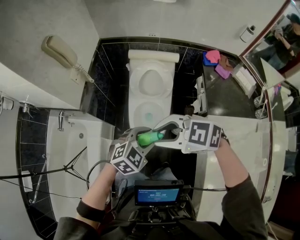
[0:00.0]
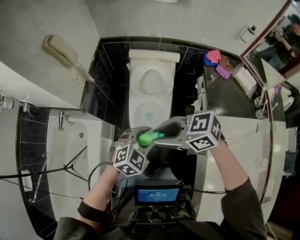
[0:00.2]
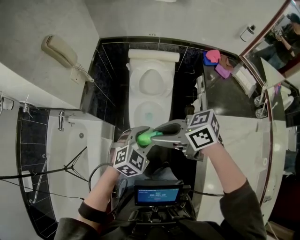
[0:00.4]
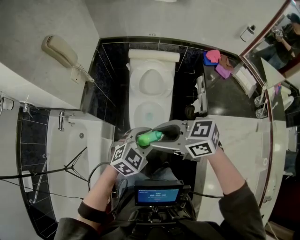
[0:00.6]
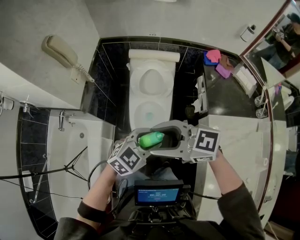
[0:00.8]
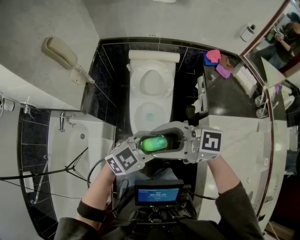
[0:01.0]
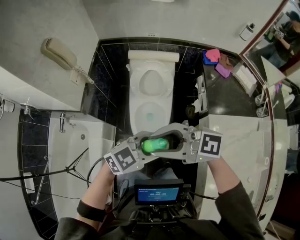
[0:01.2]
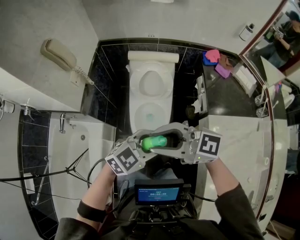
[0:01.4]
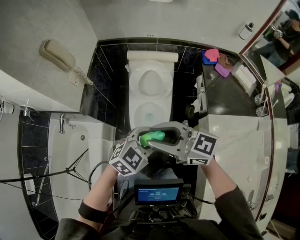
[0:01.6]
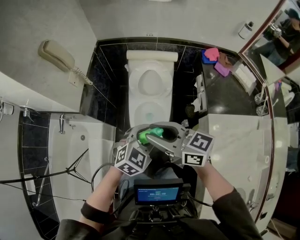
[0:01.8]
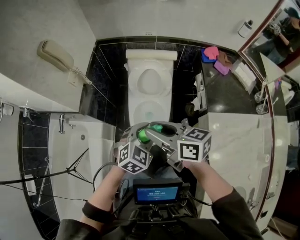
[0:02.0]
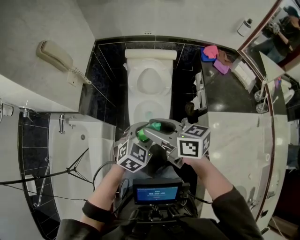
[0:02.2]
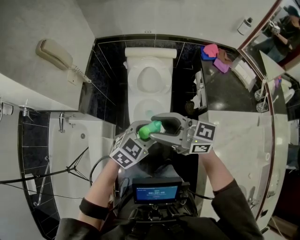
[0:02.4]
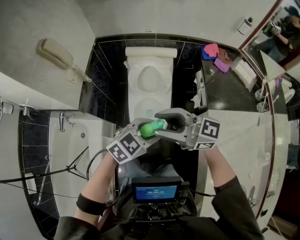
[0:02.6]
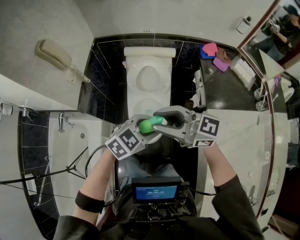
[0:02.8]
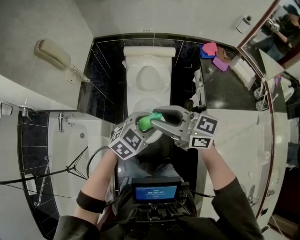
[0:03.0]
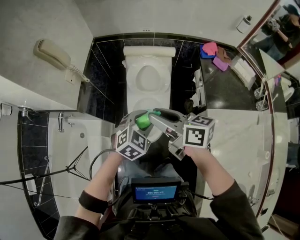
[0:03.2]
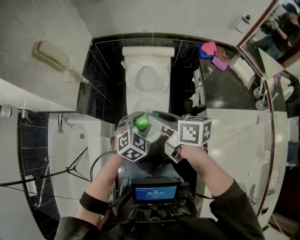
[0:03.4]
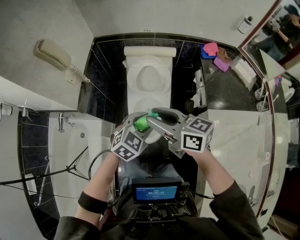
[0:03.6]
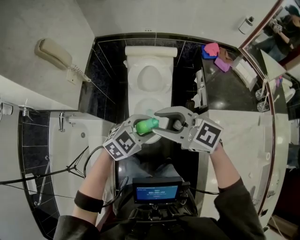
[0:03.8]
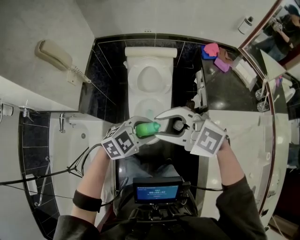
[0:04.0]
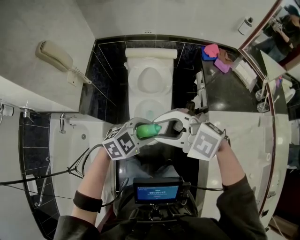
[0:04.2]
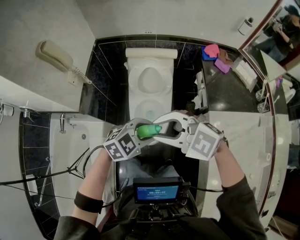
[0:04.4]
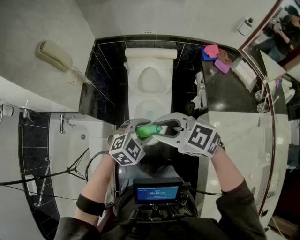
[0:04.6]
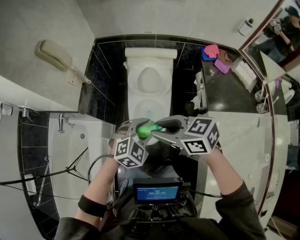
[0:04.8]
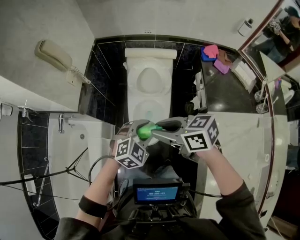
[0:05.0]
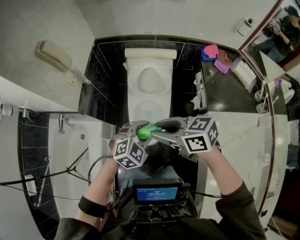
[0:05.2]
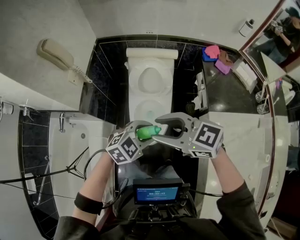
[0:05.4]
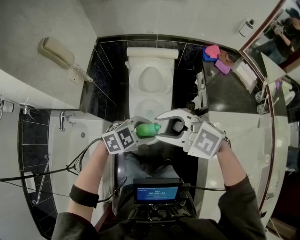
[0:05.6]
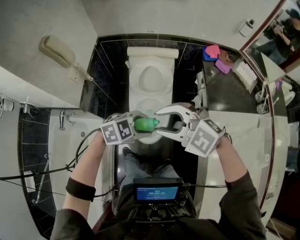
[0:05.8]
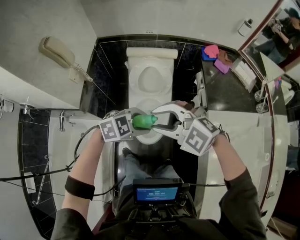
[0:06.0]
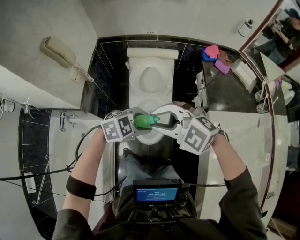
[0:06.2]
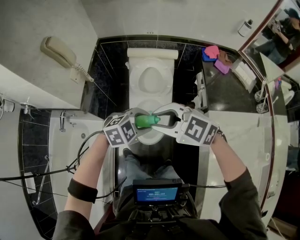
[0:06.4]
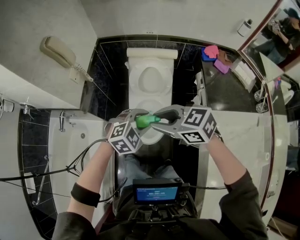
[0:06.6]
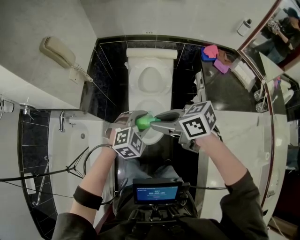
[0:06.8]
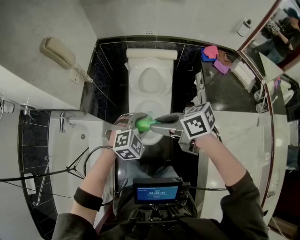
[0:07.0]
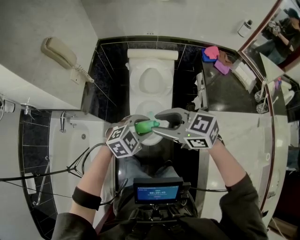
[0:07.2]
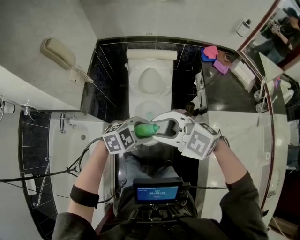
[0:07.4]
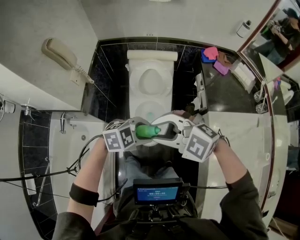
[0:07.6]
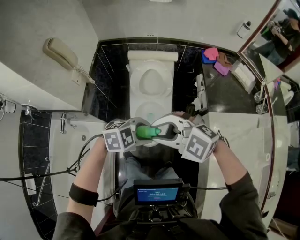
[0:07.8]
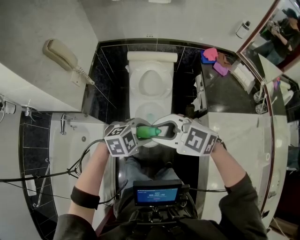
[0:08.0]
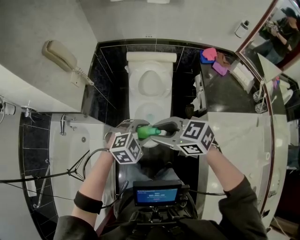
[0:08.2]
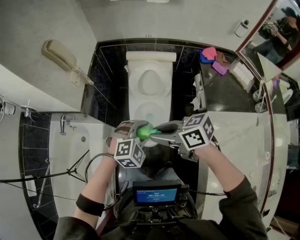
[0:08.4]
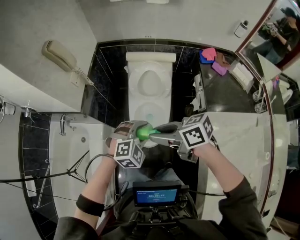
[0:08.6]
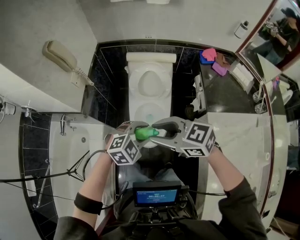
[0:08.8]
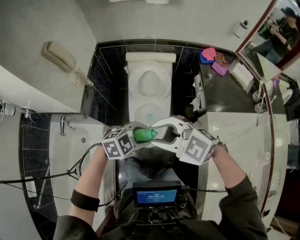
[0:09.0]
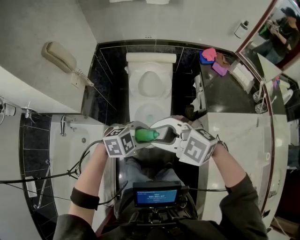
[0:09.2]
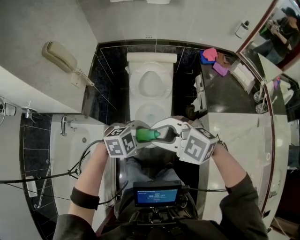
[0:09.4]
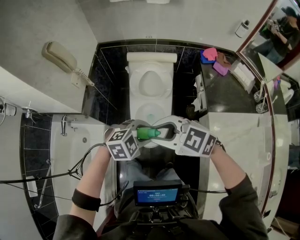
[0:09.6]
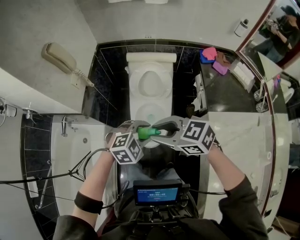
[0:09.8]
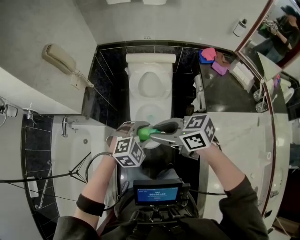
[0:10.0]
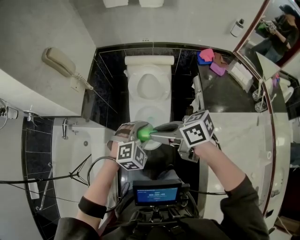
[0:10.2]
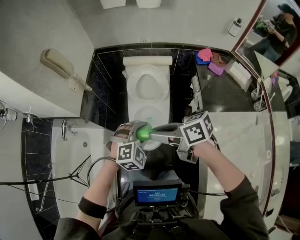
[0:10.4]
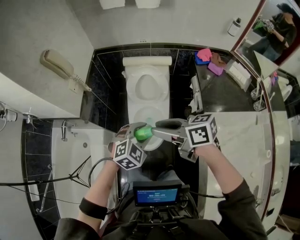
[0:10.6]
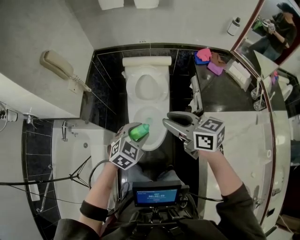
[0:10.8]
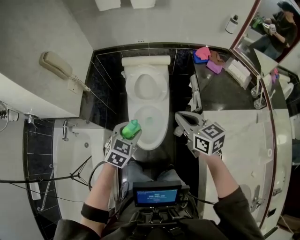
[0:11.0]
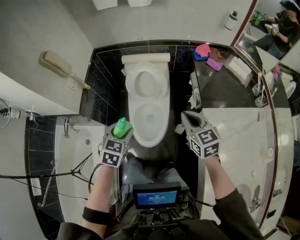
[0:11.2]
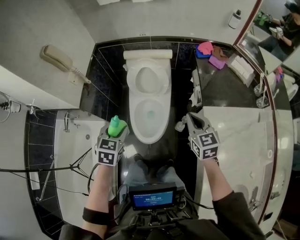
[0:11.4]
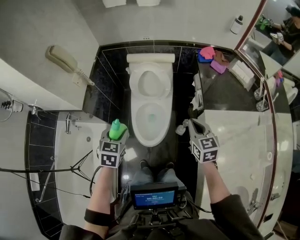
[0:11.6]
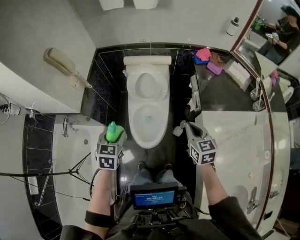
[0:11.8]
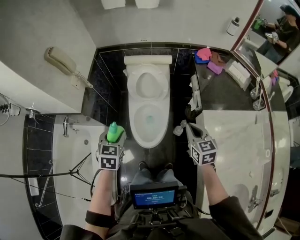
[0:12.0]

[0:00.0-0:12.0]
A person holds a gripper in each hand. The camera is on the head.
0:00.0 to 0:01.6: The right gripper tilts its fingers roughly 30 degrees upward.
0:01.6 to 0:03.0: The right gripper changes place by roughly 5 cm.
0:03.0 to 0:04.4: The right gripper shifts by some 5 cm, and turns by about 50 degrees.
0:09.0 to 0:10.4: The right gripper shifts by about 5 cm, and twists roughly 70 degrees clockwise, seen from behind, while the left gripper rotates approximately 40 degrees.
0:10.4 to 0:12.0: The left gripper shifts roughly 15 cm to the left, and rolls counterclockwise, seen from behind, by roughly 50 degrees. The right gripper heads to the right and downward, covering approximately 20 cm, turns by about 60 degrees, and closes up.

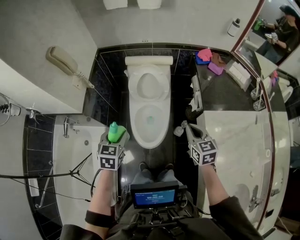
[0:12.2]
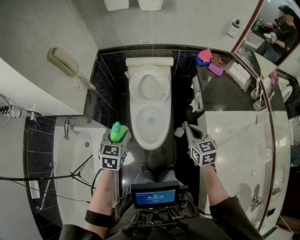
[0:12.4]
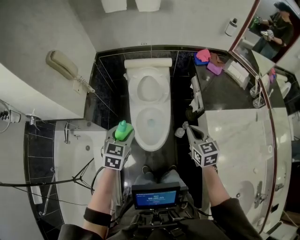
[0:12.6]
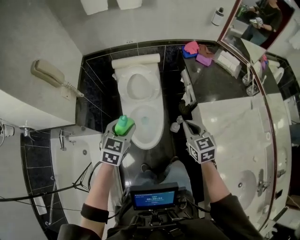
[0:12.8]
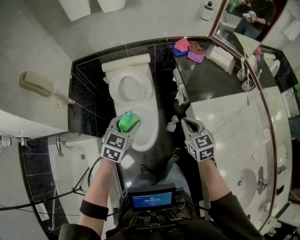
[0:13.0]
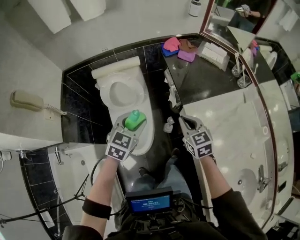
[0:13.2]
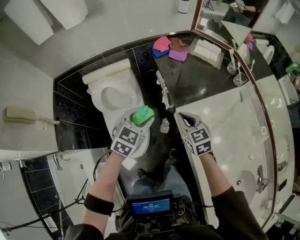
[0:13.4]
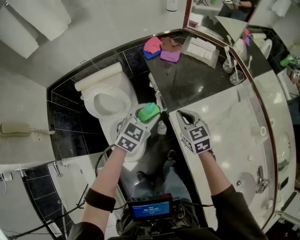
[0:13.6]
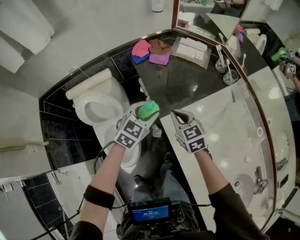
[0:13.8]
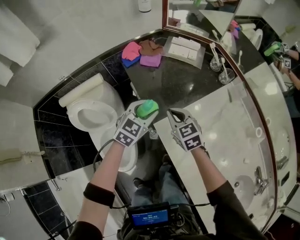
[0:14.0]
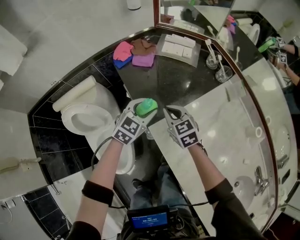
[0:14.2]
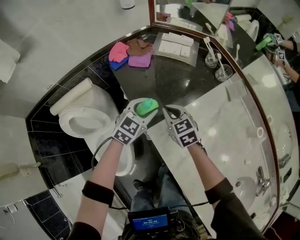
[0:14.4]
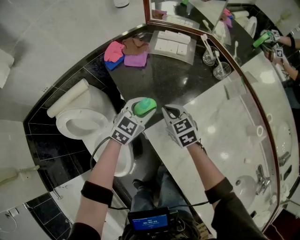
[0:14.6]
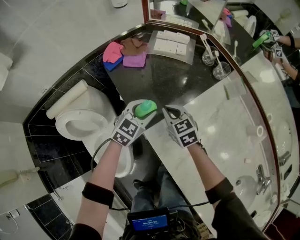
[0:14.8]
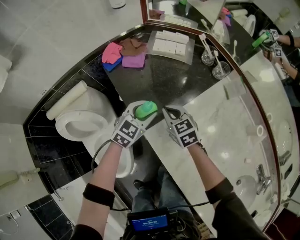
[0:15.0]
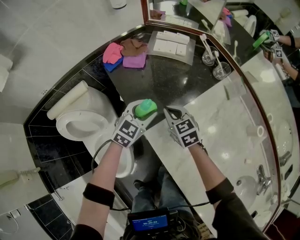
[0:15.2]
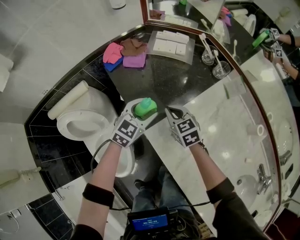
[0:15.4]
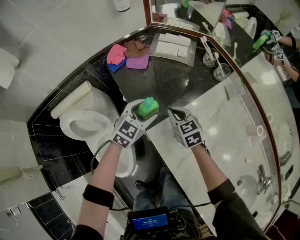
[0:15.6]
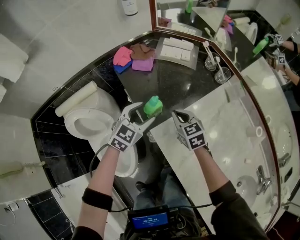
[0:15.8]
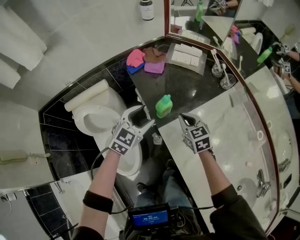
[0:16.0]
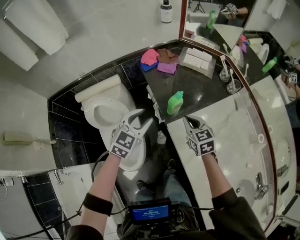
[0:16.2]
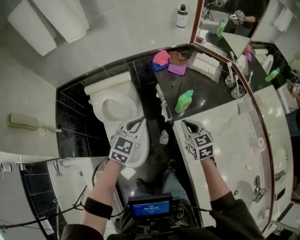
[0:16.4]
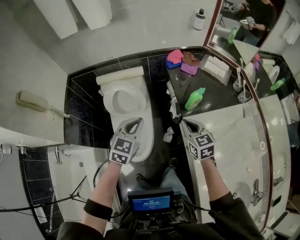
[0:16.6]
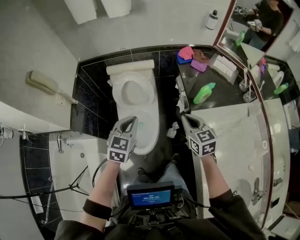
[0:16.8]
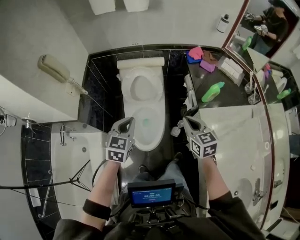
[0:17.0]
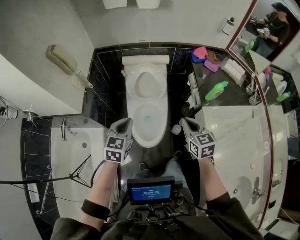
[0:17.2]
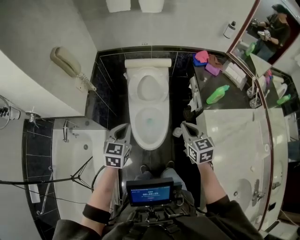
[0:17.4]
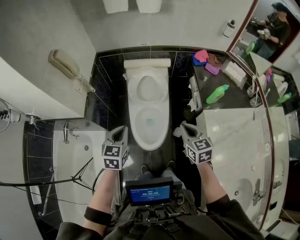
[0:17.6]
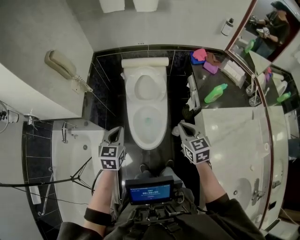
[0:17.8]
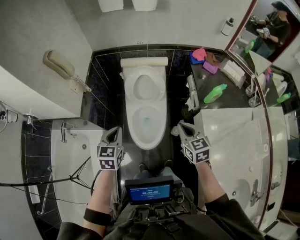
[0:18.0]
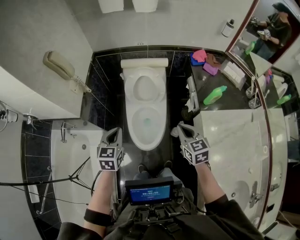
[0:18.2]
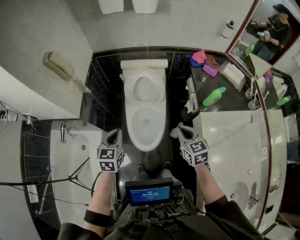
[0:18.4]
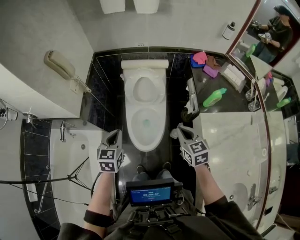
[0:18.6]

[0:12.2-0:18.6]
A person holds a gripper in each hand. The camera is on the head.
0:12.2 to 0:13.8: The left gripper moves some 50 cm, and rotates some 60 degrees, while the right gripper moves about 25 cm.
0:13.8 to 0:15.4: The two grippers go approximately 15 cm forward, downward and to the right.
0:15.4 to 0:17.0: The right gripper shifts by approximately 40 cm. The left gripper ends up approximately 60 cm from where it was, turns by some 50 degrees, and closes up.
0:17.0 to 0:18.6: The left gripper goes roughly 10 cm to the left.

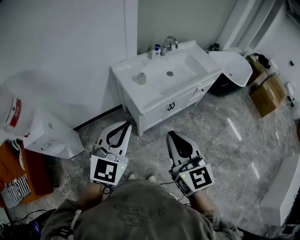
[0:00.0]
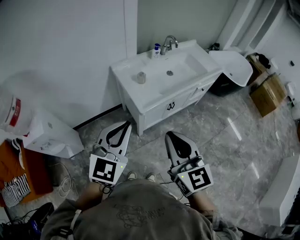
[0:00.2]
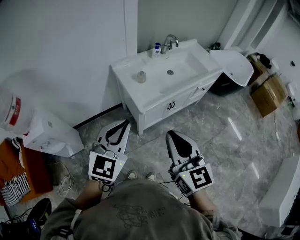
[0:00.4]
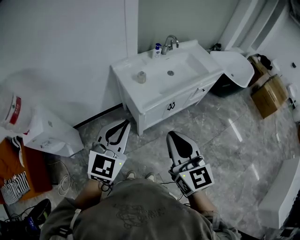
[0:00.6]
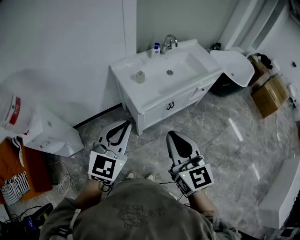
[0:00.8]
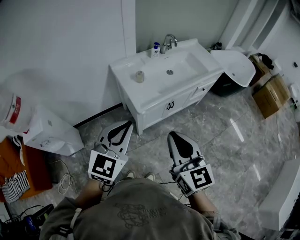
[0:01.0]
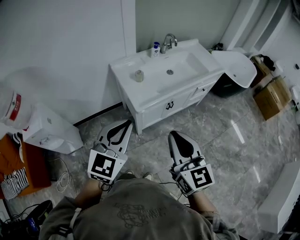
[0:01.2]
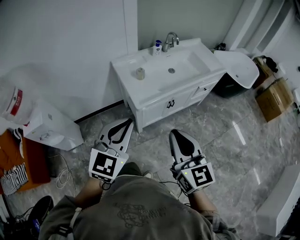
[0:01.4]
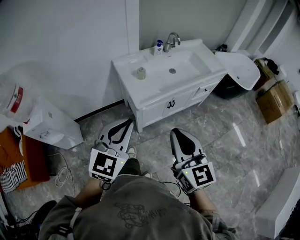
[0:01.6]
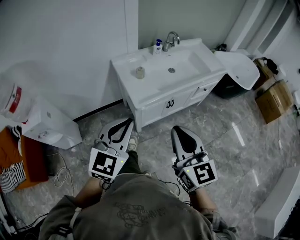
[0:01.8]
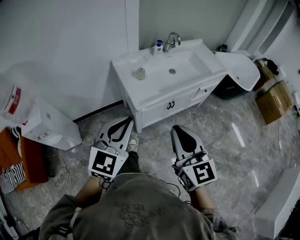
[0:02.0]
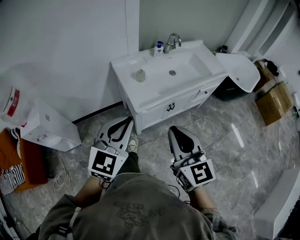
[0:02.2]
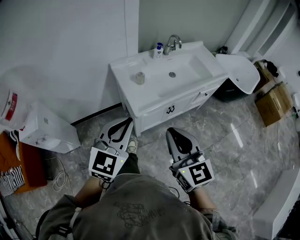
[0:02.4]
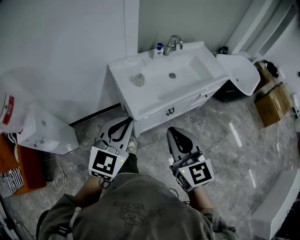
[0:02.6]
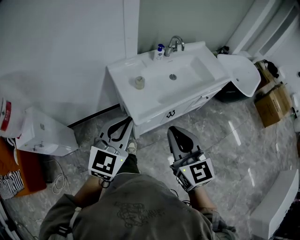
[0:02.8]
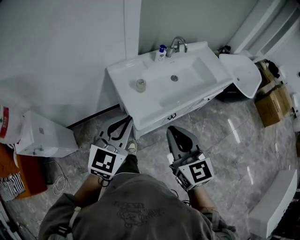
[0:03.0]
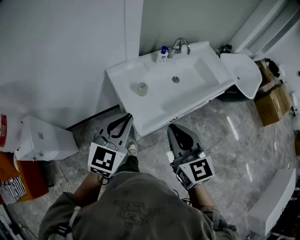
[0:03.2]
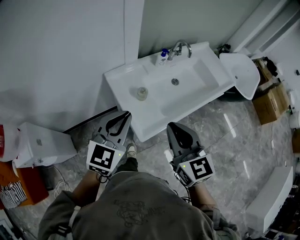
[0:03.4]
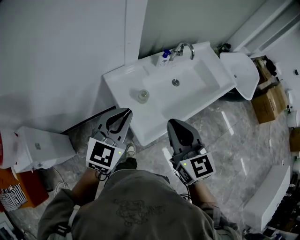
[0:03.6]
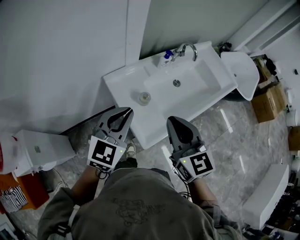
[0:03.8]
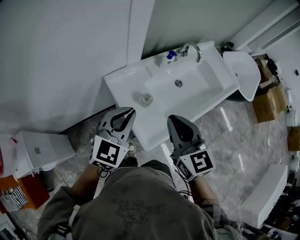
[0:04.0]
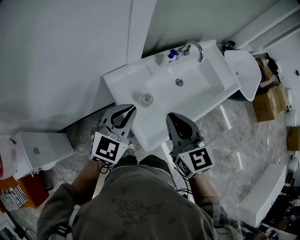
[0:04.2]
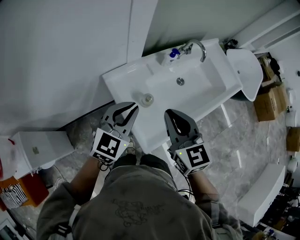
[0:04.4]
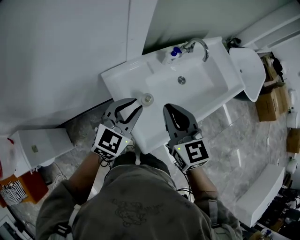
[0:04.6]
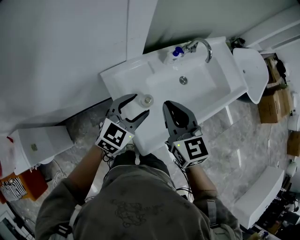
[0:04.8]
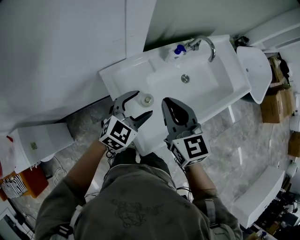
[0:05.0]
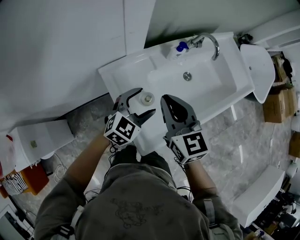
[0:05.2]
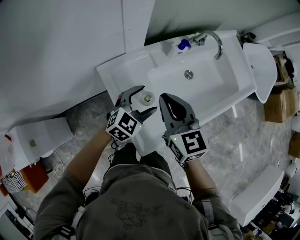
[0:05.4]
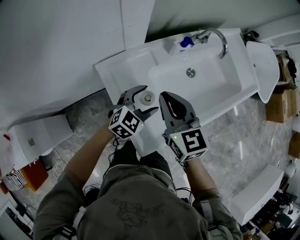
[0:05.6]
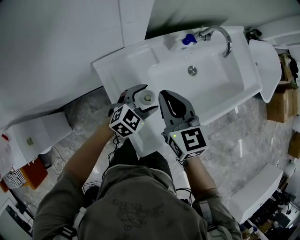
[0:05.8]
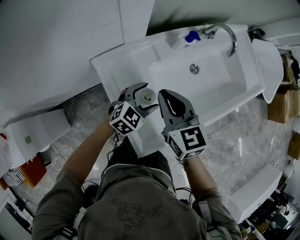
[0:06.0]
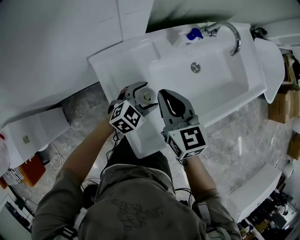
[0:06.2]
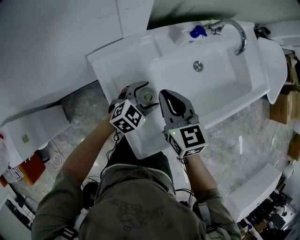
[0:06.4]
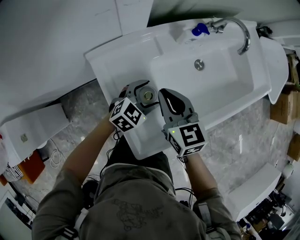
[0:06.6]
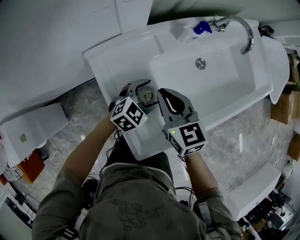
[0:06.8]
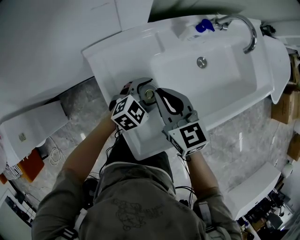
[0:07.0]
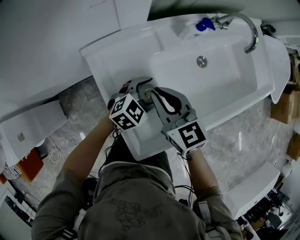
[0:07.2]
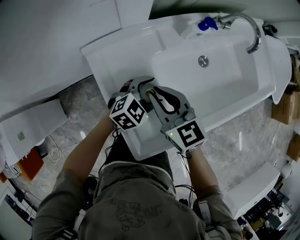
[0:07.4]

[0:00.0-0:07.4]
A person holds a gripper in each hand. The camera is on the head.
0:00.0 to 0:01.4: The grippers both shift to the right by roughly 5 cm.
0:01.4 to 0:03.0: The grippers both shift forward by approximately 20 cm.
0:03.0 to 0:04.4: The two grippers go some 25 cm forward.
0:04.4 to 0:06.0: The two grippers go some 20 cm downward and forward. The left gripper rotates roughly 20 degrees, and opens.
0:06.0 to 0:07.4: The left gripper shifts roughly 5 cm downward. The right gripper shifts some 10 cm downward.
